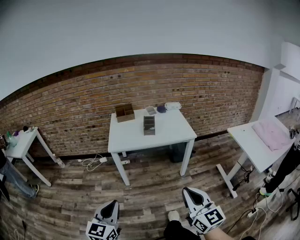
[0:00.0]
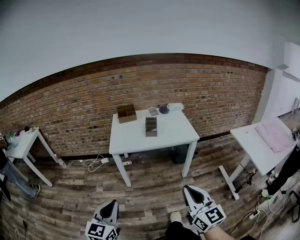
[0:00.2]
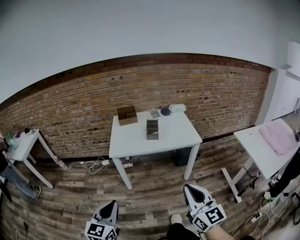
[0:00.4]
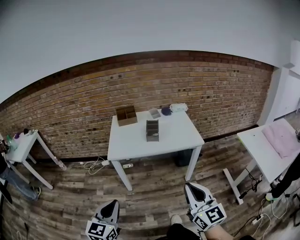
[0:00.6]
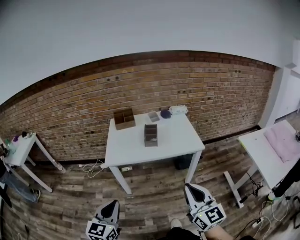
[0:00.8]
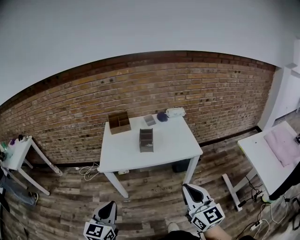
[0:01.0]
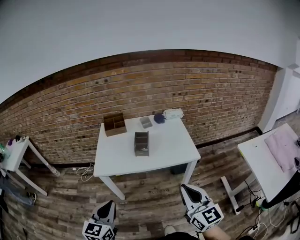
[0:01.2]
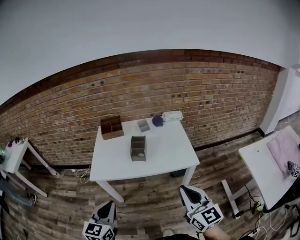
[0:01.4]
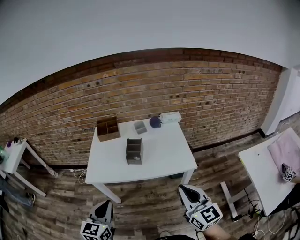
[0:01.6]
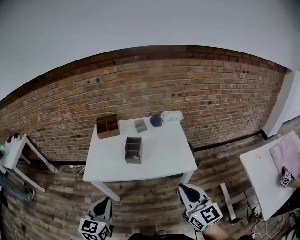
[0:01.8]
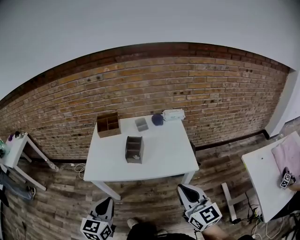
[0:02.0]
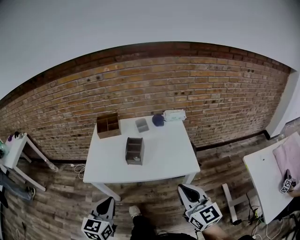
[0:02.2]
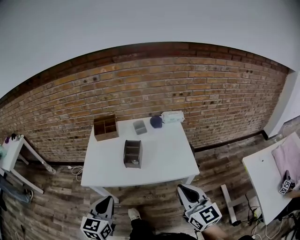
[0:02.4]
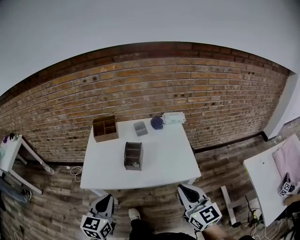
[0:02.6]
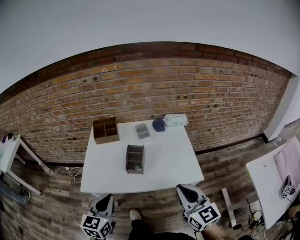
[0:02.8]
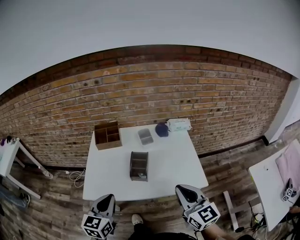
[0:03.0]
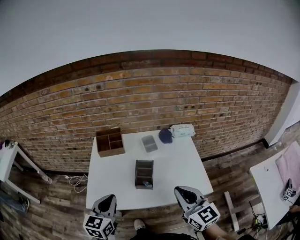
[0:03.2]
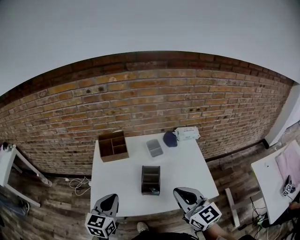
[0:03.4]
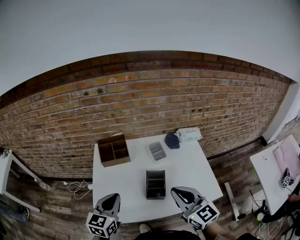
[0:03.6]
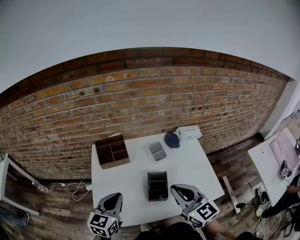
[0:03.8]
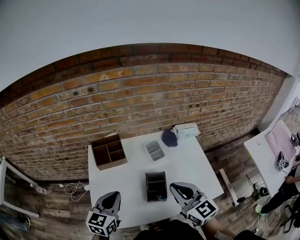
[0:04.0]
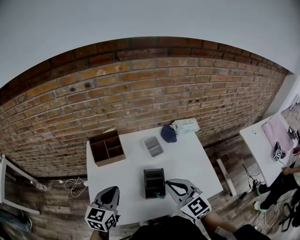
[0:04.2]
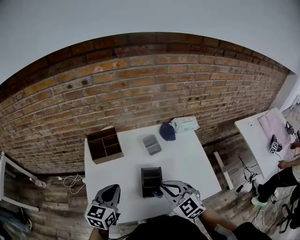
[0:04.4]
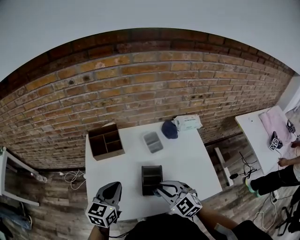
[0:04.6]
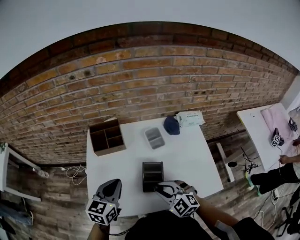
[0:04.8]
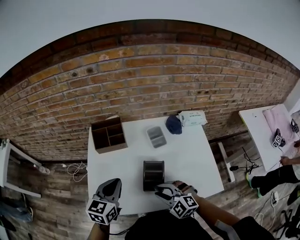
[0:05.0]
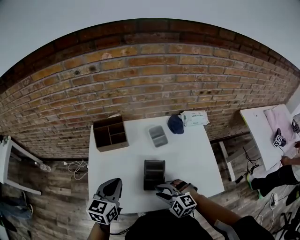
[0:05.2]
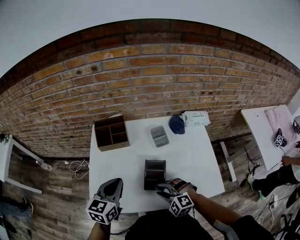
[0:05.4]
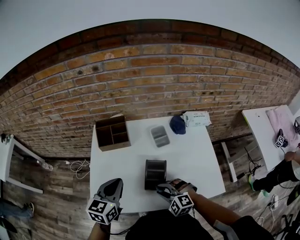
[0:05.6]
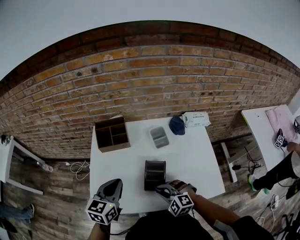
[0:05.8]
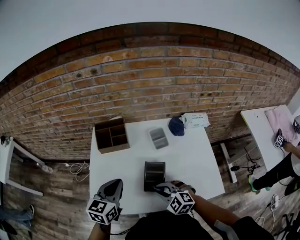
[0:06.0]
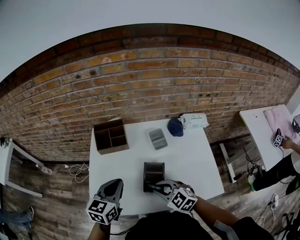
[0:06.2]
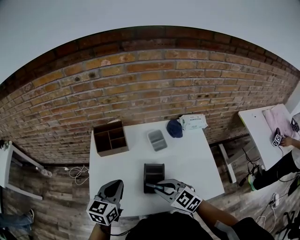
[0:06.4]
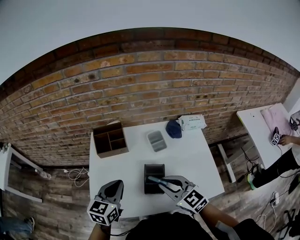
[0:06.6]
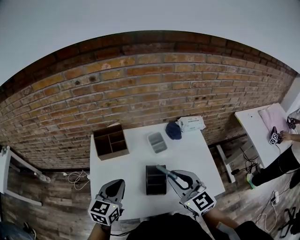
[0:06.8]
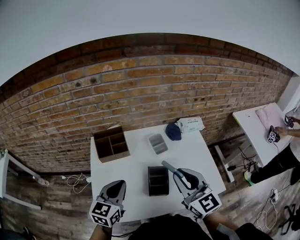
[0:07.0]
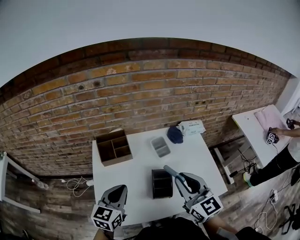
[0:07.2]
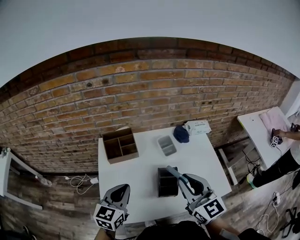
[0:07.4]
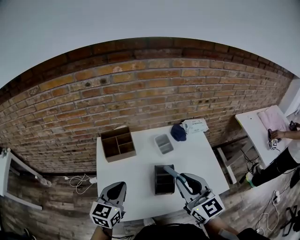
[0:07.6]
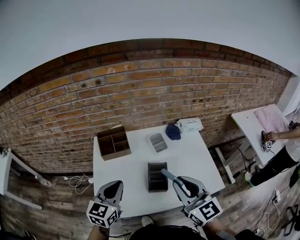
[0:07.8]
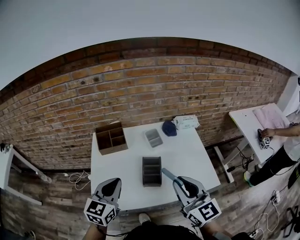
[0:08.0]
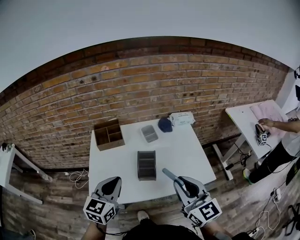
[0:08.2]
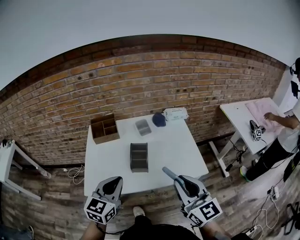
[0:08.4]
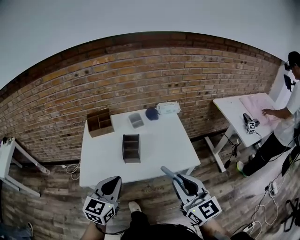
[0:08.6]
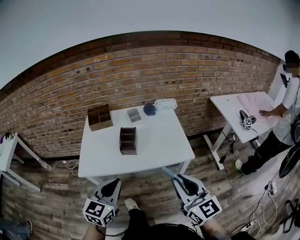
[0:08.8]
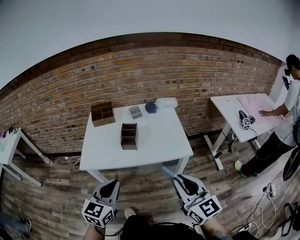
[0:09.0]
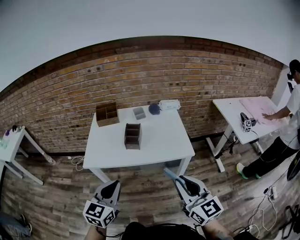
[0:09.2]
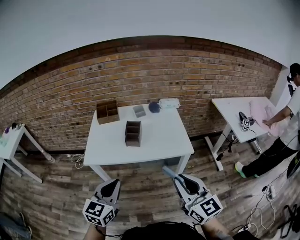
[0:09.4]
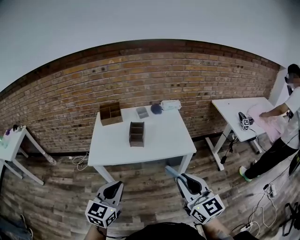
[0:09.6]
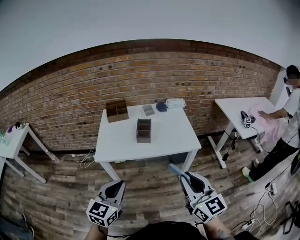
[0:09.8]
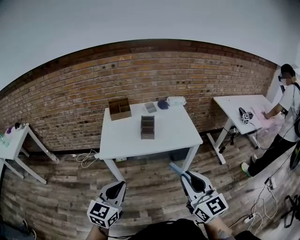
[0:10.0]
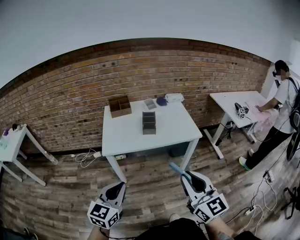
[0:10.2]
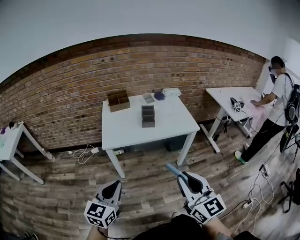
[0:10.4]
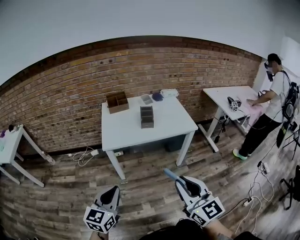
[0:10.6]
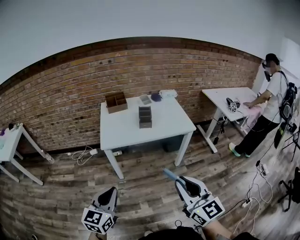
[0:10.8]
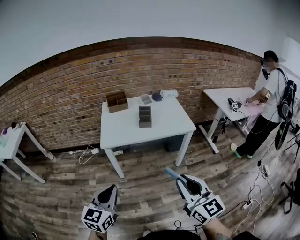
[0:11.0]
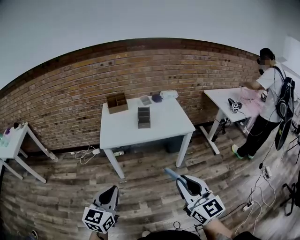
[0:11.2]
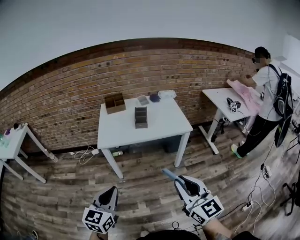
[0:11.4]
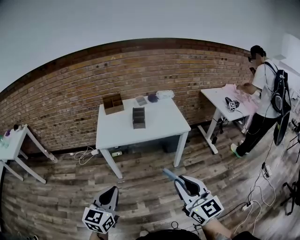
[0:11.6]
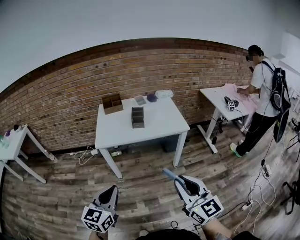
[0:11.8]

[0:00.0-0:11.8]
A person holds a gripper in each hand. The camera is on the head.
0:00.0 to 0:01.4: The right gripper shifts roughly 30 cm forward. Meanwhile the left gripper moves forward and to the right, roughly 30 cm.
0:01.4 to 0:03.0: Both grippers travel together forward, roughly 20 cm.
0:03.0 to 0:04.4: The right gripper is displaced forward, to the left and downward by some 25 cm, and rotates about 30 degrees. The left gripper travels forward by approximately 20 cm.
0:04.4 to 0:06.0: The right gripper heads downward, covering about 10 cm, and rotates approximately 30 degrees.
0:06.0 to 0:07.4: The right gripper goes roughly 25 cm upward, and points its fingers approximately 40 degrees further upward.
0:07.4 to 0:08.8: The two grippers go some 35 cm backward and to the right.
0:08.8 to 0:10.4: The two grippers go approximately 30 cm backward and to the left.
0:10.4 to 0:11.8: The grippers both shift to the right and backward by roughly 10 cm.

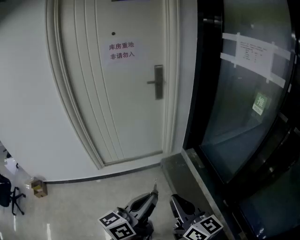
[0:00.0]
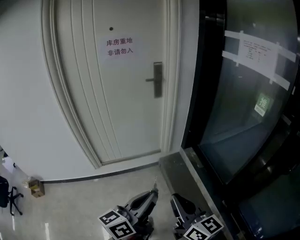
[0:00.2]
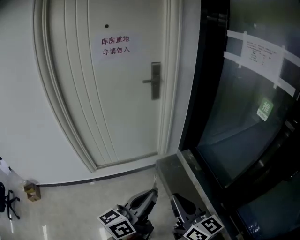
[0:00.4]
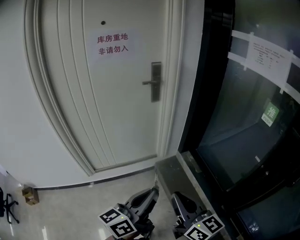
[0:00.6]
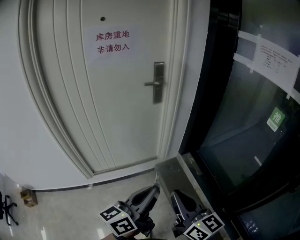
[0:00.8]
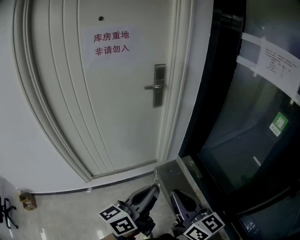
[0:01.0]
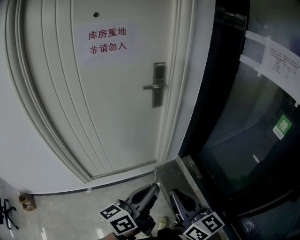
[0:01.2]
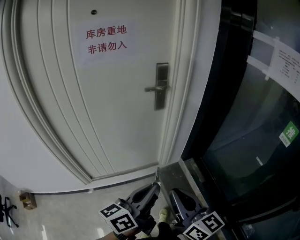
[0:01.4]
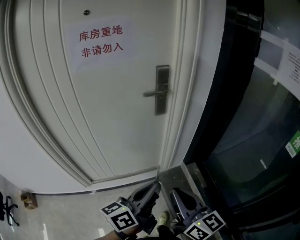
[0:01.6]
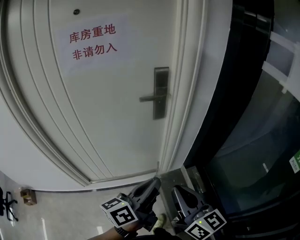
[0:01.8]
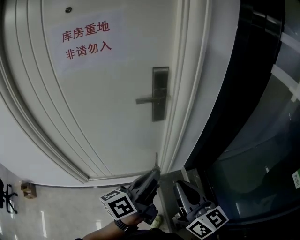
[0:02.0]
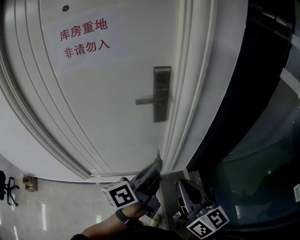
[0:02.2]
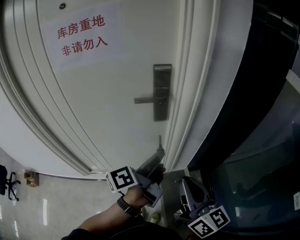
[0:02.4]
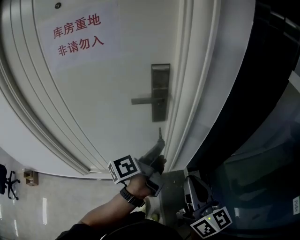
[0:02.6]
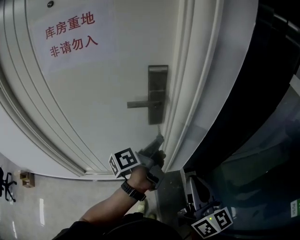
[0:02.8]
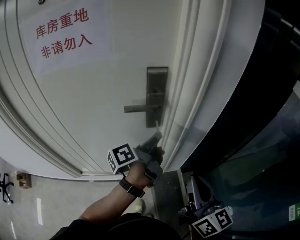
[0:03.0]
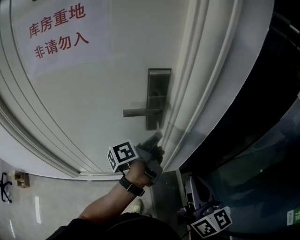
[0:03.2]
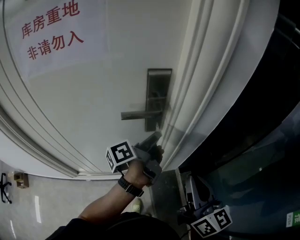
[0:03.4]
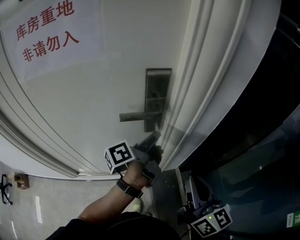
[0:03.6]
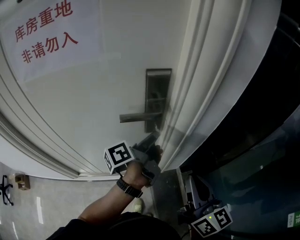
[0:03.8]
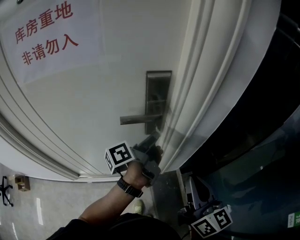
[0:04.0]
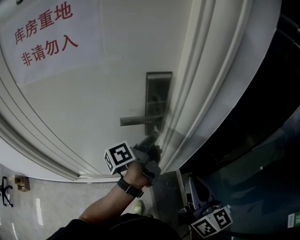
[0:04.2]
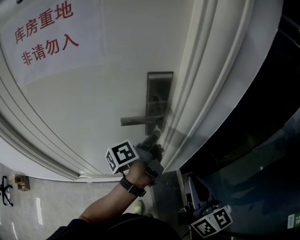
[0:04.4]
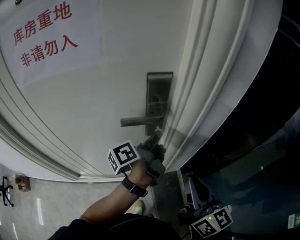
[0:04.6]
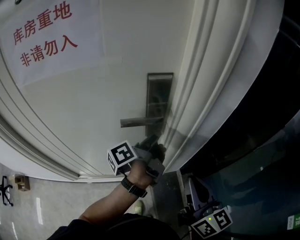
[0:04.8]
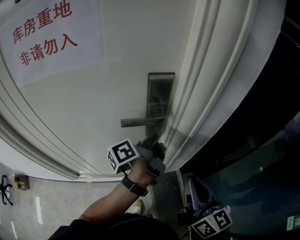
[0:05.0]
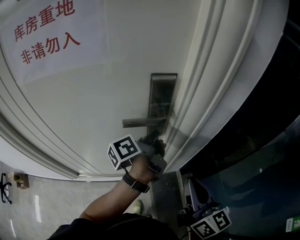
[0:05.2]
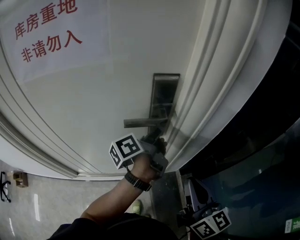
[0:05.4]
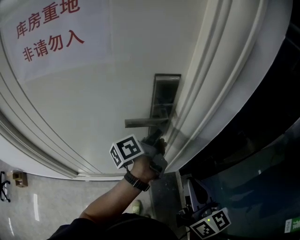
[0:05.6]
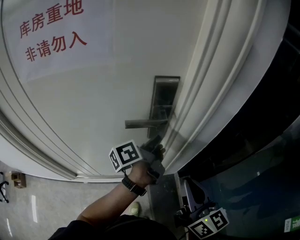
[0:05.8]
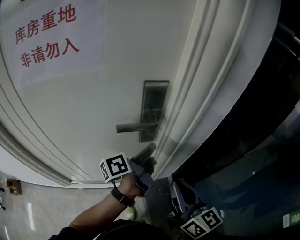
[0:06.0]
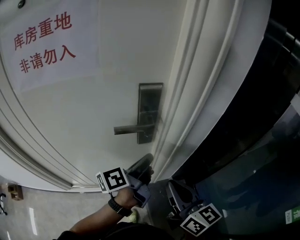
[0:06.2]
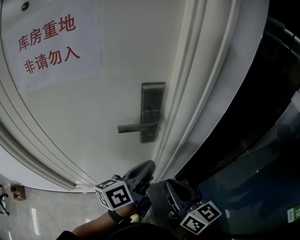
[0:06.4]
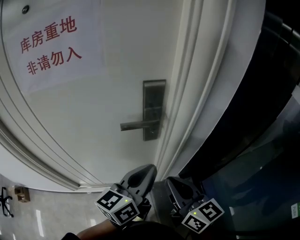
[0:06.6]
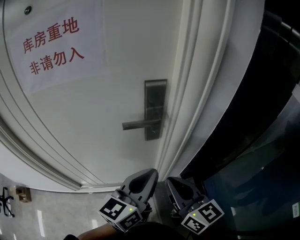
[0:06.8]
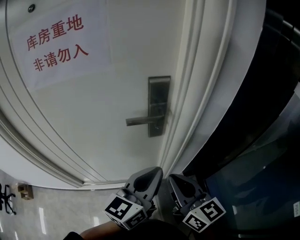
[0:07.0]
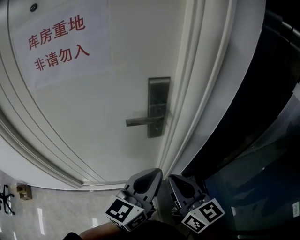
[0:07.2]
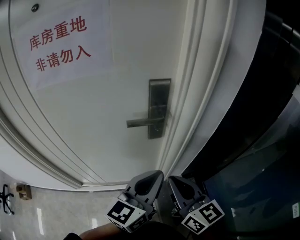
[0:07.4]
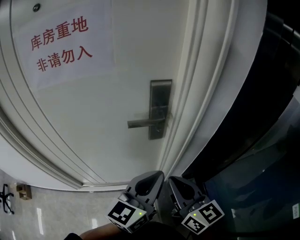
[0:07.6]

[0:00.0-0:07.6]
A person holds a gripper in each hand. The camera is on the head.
0:00.0 to 0:01.6: Both grippers move forward, about 40 cm.
0:01.6 to 0:03.0: The right gripper moves forward and to the right, approximately 30 cm. Meanwhile the left gripper is displaced forward by roughly 35 cm, and changes its angle by roughly 30 degrees.
0:03.0 to 0:04.6: The grippers both shift forward by some 5 cm.
0:04.6 to 0:06.0: The grippers move only a little.
0:06.0 to 0:07.6: The left gripper travels backward and upward by roughly 15 cm, and rolls clockwise, seen from behind, by roughly 60 degrees.

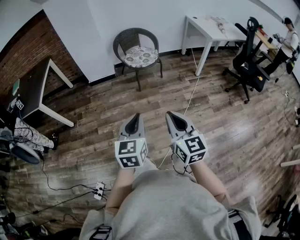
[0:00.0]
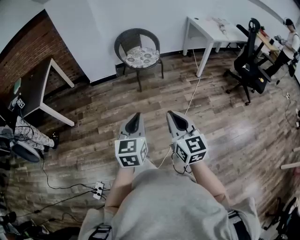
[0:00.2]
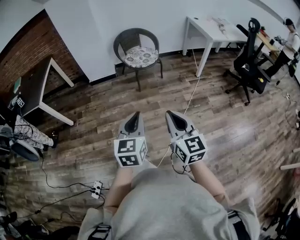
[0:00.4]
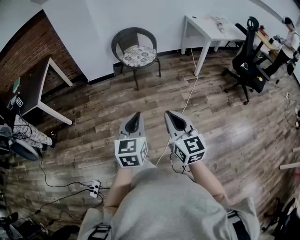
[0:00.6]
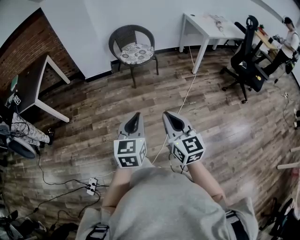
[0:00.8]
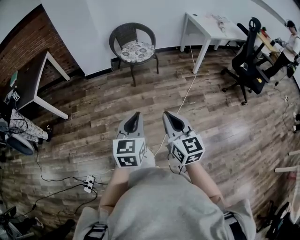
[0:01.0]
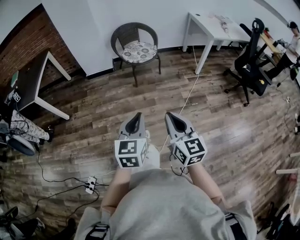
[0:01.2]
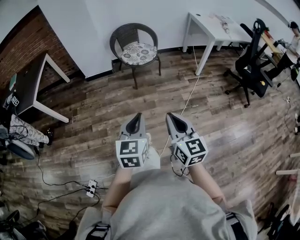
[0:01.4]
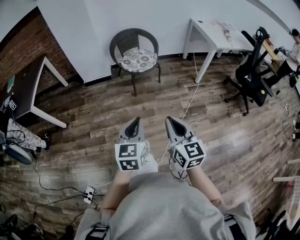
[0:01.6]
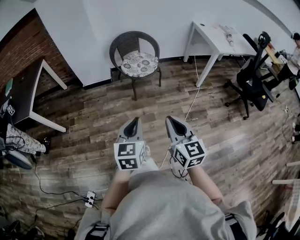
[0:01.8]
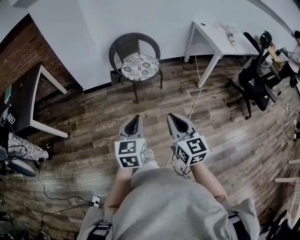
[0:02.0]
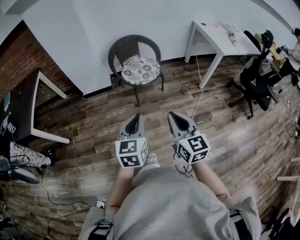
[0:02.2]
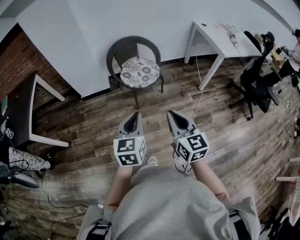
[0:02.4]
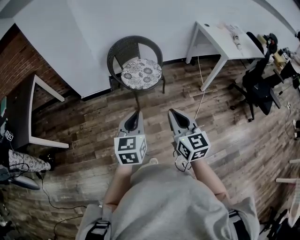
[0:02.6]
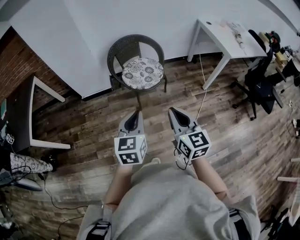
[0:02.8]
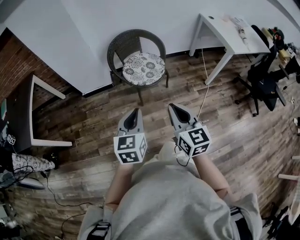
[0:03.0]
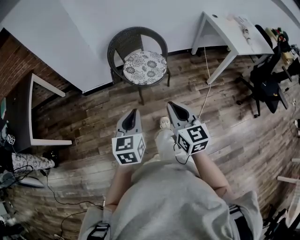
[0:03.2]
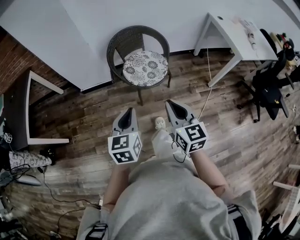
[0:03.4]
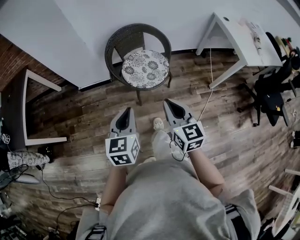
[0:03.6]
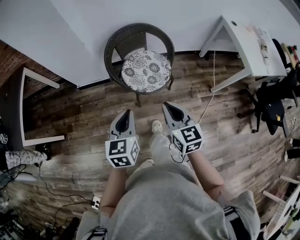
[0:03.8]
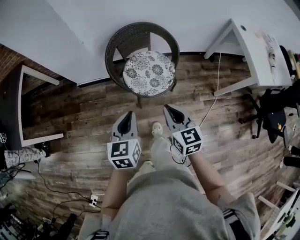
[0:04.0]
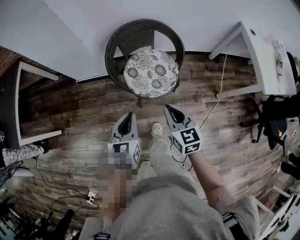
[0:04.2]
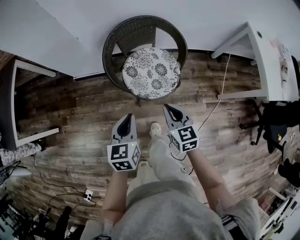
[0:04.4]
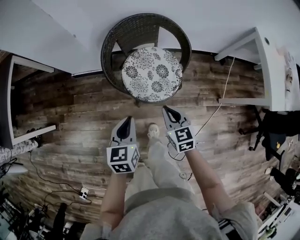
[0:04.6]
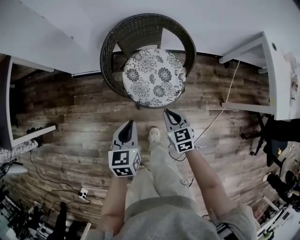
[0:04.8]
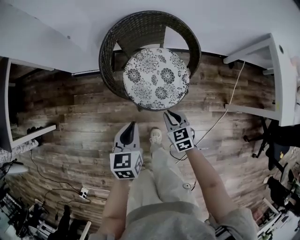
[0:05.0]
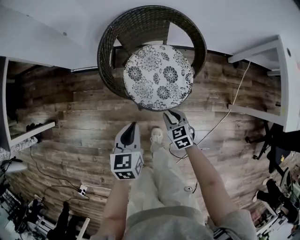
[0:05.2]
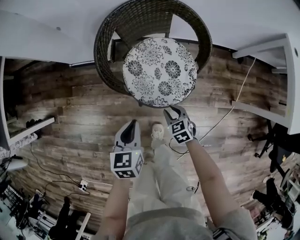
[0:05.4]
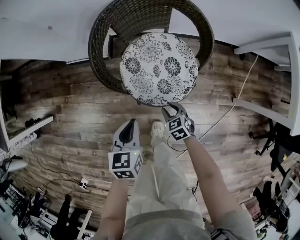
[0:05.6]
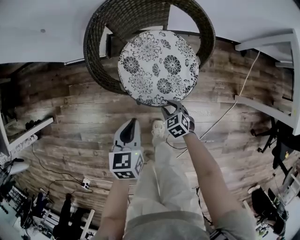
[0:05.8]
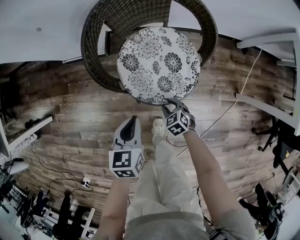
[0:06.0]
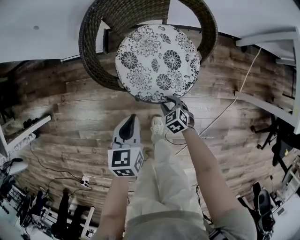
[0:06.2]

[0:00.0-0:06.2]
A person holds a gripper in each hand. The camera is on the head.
0:00.0 to 0:01.6: Both grippers move forward and to the right, approximately 15 cm.
0:01.6 to 0:03.2: The two grippers go about 35 cm forward.
0:03.2 to 0:04.6: The two grippers go approximately 40 cm forward and downward. The right gripper swivels roughly 30 degrees.
0:04.6 to 0:06.2: The left gripper goes roughly 20 cm downward. Meanwhile the right gripper moves downward, about 35 cm, swivels roughly 40 degrees, and opens its fingers.
